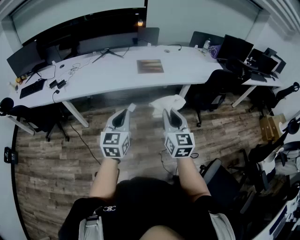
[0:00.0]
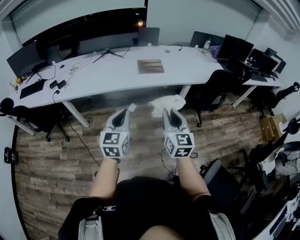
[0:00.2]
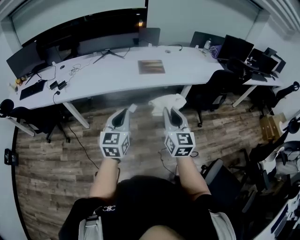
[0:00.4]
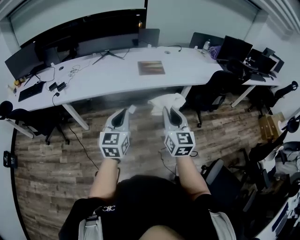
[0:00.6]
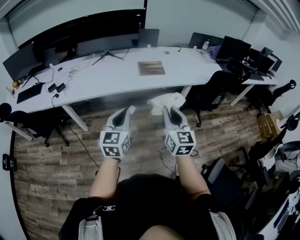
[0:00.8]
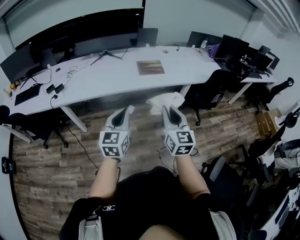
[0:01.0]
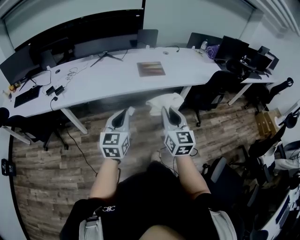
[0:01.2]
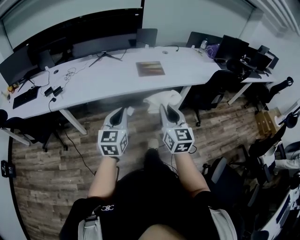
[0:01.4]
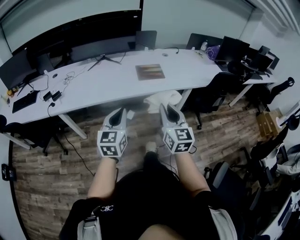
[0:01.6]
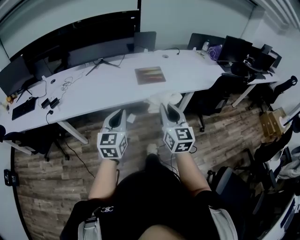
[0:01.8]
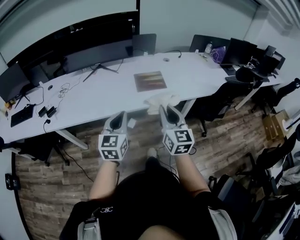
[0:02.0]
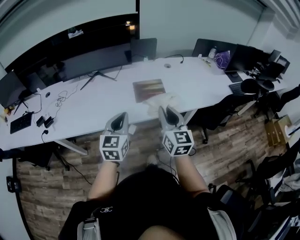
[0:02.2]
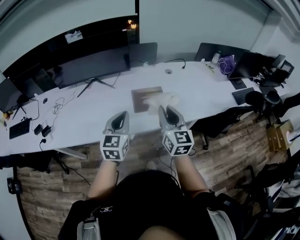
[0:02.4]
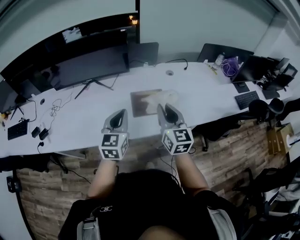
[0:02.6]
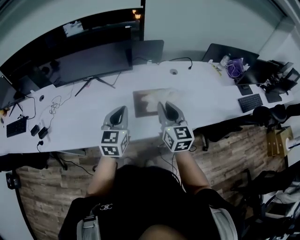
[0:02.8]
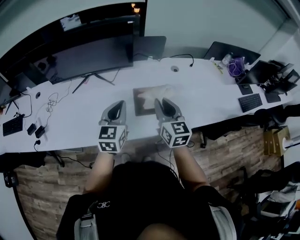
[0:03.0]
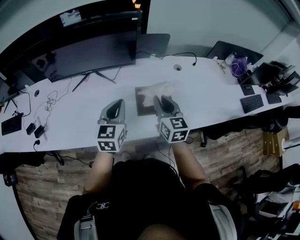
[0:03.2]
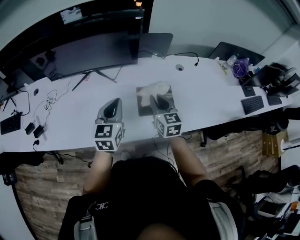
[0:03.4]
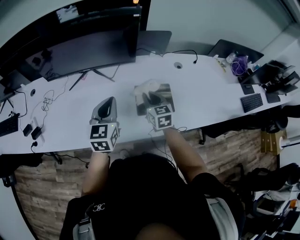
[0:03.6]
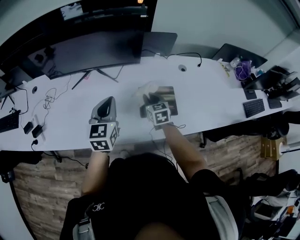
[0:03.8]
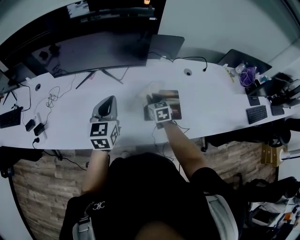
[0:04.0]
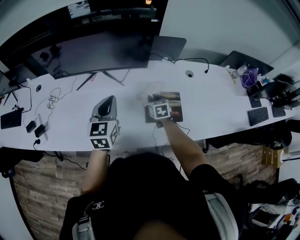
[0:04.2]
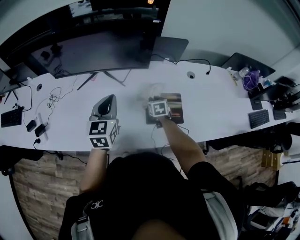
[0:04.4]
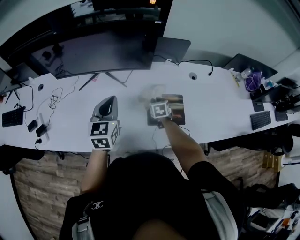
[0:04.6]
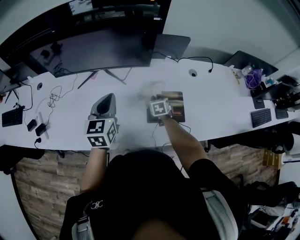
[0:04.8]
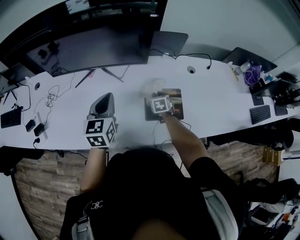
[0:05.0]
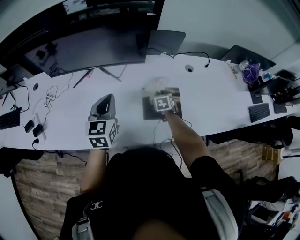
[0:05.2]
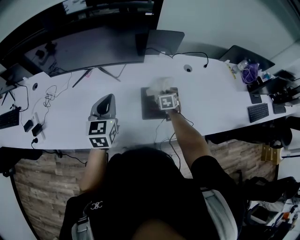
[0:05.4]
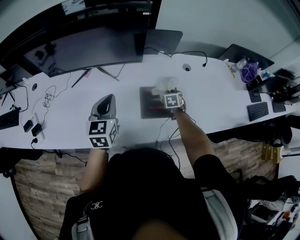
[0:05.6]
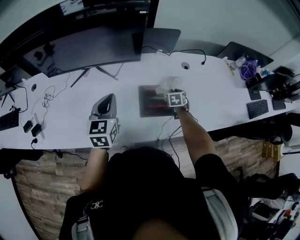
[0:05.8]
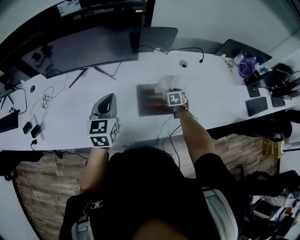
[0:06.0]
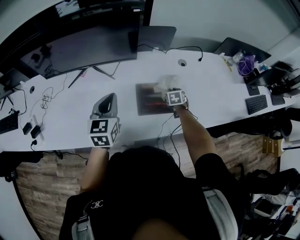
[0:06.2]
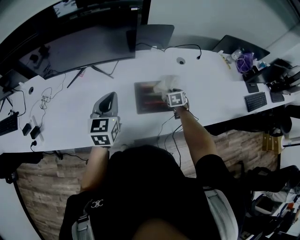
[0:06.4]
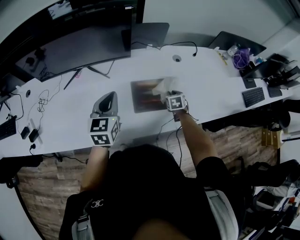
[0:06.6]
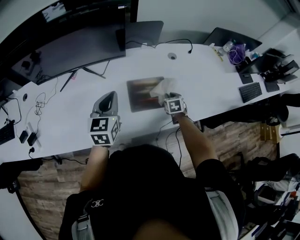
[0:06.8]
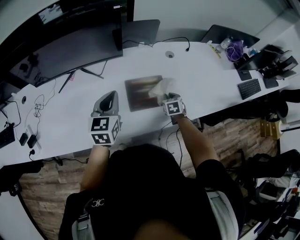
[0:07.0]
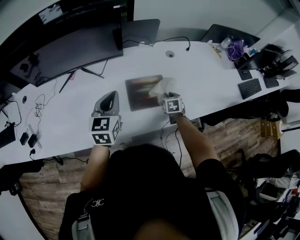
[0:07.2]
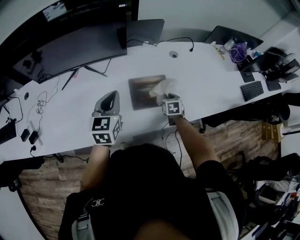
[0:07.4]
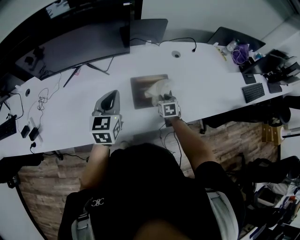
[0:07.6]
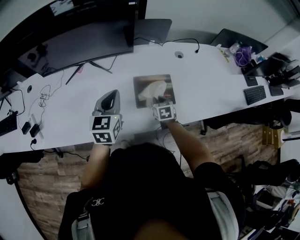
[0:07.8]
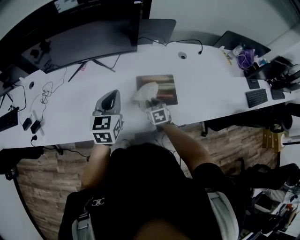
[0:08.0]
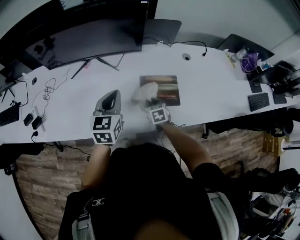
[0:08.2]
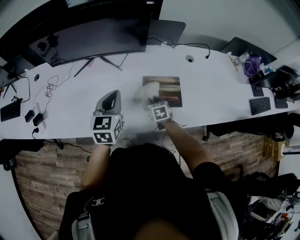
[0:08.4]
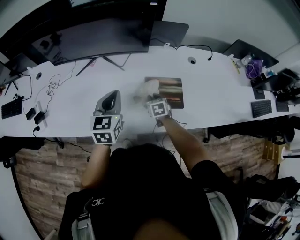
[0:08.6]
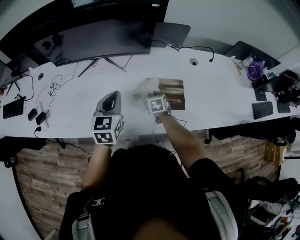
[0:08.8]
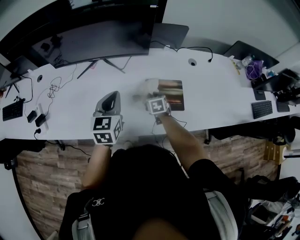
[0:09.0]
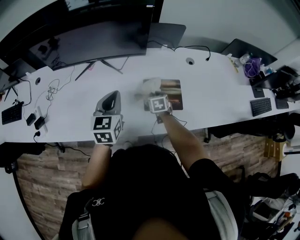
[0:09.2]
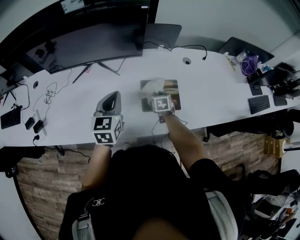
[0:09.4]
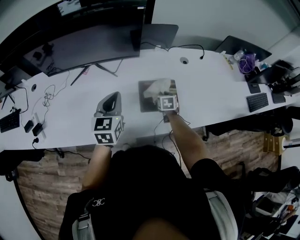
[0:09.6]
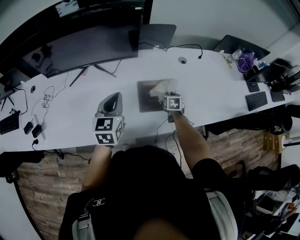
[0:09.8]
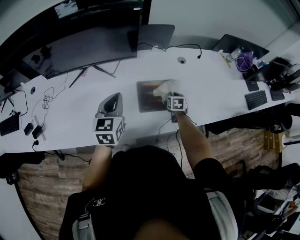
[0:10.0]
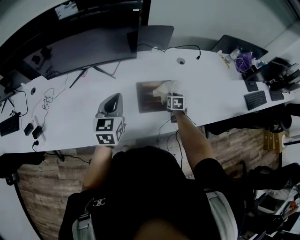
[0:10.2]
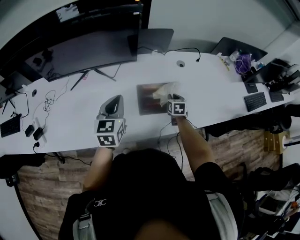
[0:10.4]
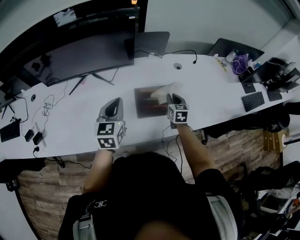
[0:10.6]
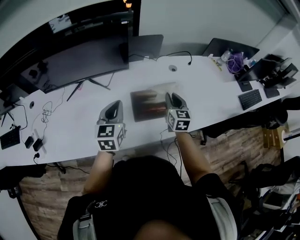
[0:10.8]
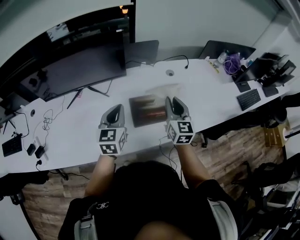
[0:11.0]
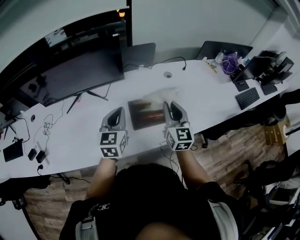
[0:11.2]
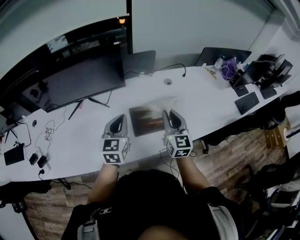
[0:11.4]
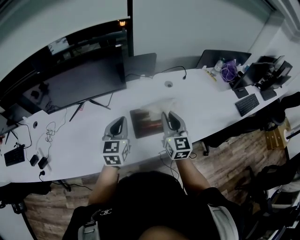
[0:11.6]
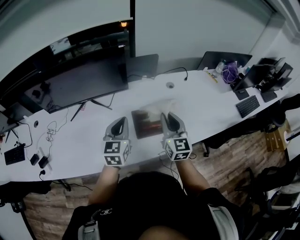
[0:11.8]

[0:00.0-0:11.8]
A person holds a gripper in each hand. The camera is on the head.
0.0 to 1.4 s: The two grippers go about 5 cm to the left.
1.4 to 3.0 s: The grippers both shift forward by some 35 cm.
3.0 to 4.4 s: The right gripper shifts some 30 cm downward and forward, and tilts its fingers about 40 degrees downward; the left gripper shifts approximately 10 cm to the left and forward.
4.4 to 6.0 s: The right gripper goes roughly 15 cm to the right.
6.0 to 7.4 s: The right gripper is displaced backward by about 10 cm.
7.4 to 8.8 s: The right gripper moves to the left, approximately 15 cm, while the left gripper travels to the left by approximately 5 cm.
8.8 to 10.4 s: The right gripper is displaced to the right by approximately 15 cm.
10.4 to 11.8 s: The right gripper shifts about 25 cm upward and backward, and tilts its fingers some 40 degrees upward.

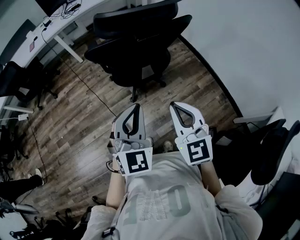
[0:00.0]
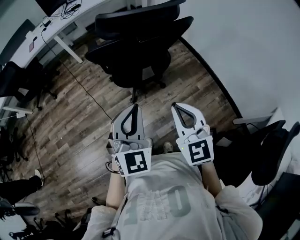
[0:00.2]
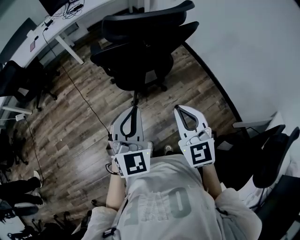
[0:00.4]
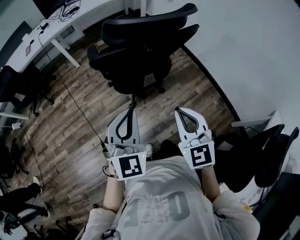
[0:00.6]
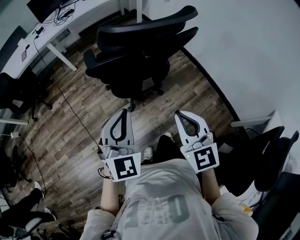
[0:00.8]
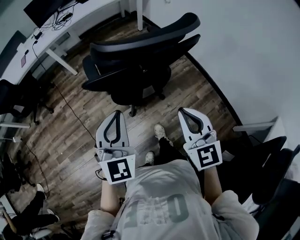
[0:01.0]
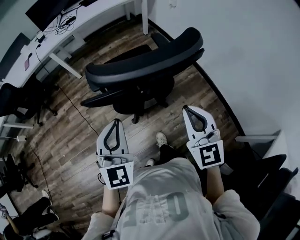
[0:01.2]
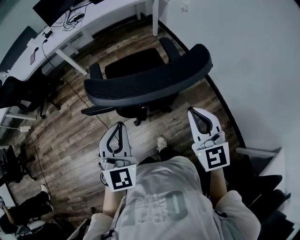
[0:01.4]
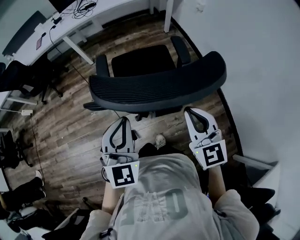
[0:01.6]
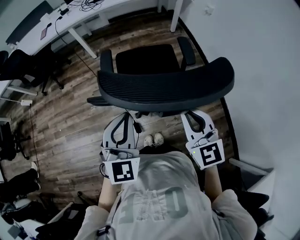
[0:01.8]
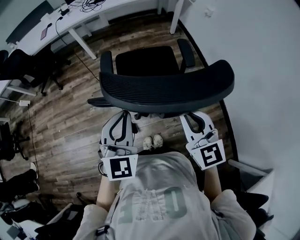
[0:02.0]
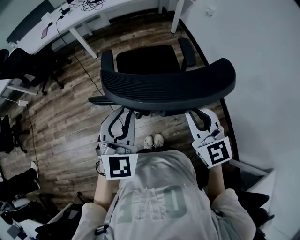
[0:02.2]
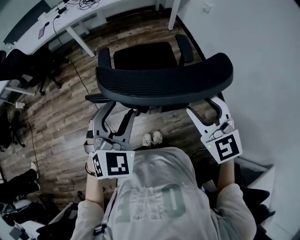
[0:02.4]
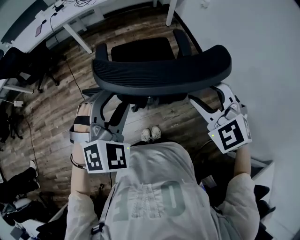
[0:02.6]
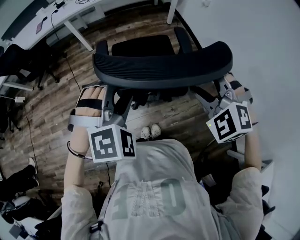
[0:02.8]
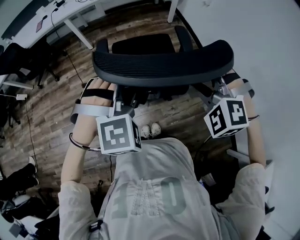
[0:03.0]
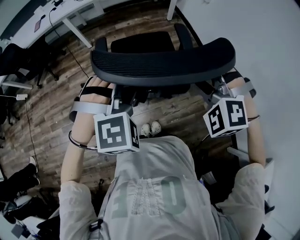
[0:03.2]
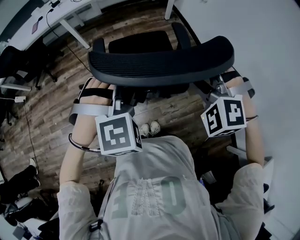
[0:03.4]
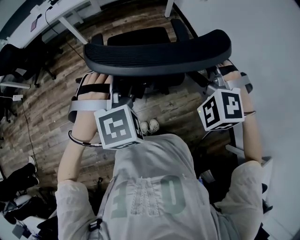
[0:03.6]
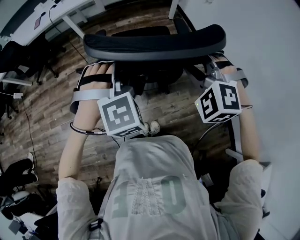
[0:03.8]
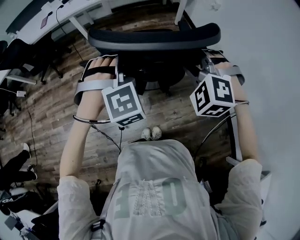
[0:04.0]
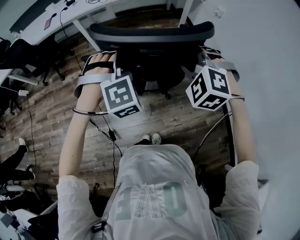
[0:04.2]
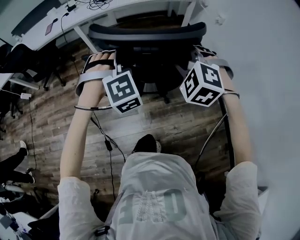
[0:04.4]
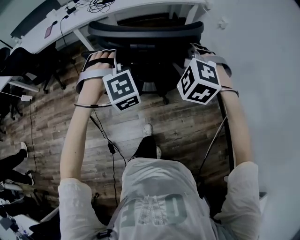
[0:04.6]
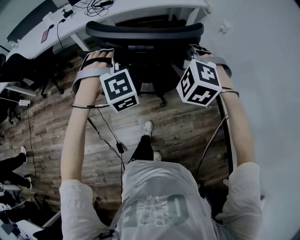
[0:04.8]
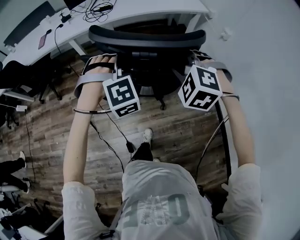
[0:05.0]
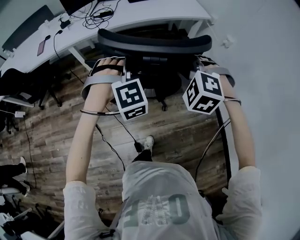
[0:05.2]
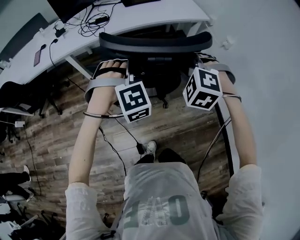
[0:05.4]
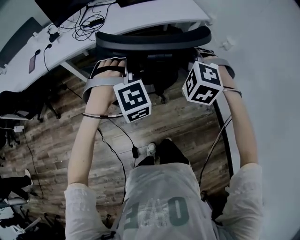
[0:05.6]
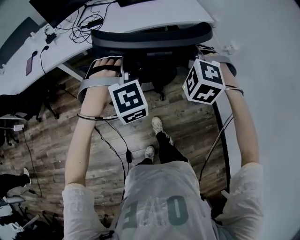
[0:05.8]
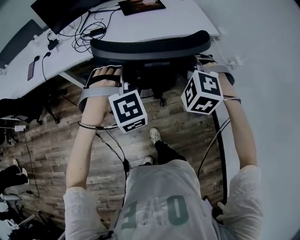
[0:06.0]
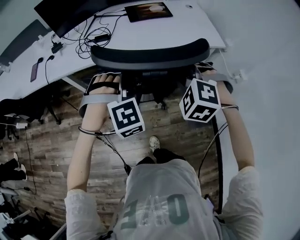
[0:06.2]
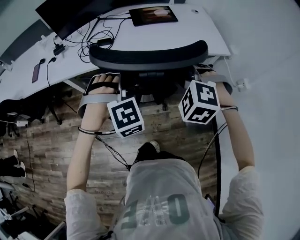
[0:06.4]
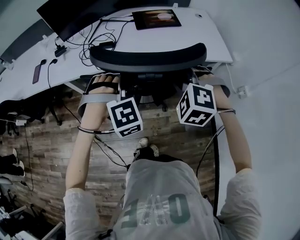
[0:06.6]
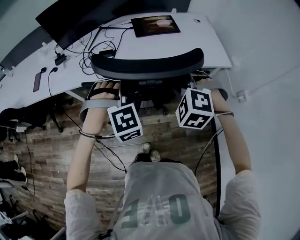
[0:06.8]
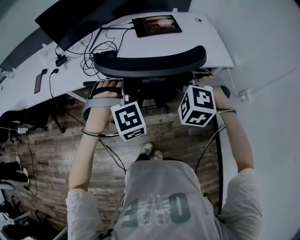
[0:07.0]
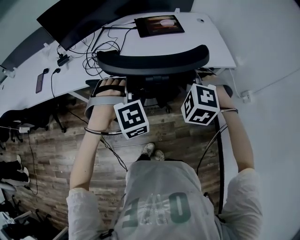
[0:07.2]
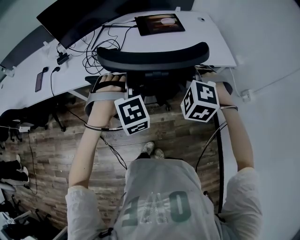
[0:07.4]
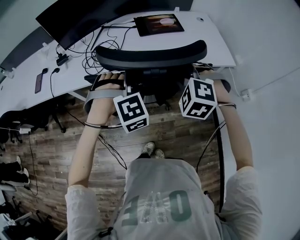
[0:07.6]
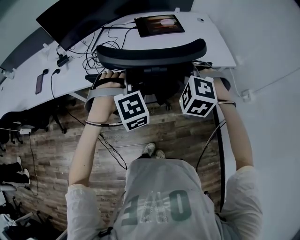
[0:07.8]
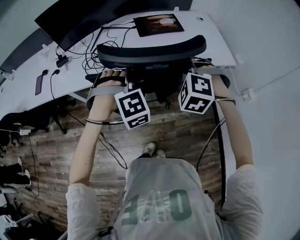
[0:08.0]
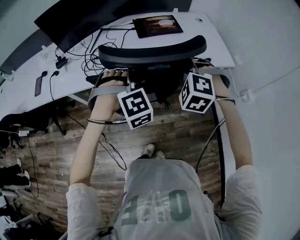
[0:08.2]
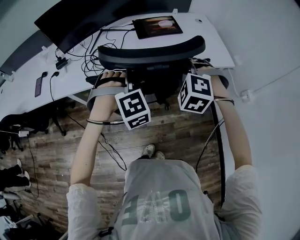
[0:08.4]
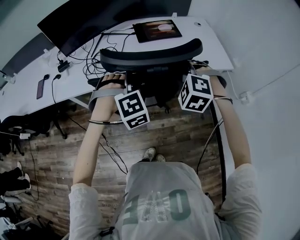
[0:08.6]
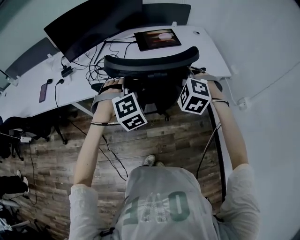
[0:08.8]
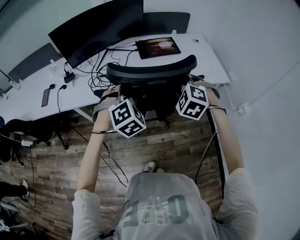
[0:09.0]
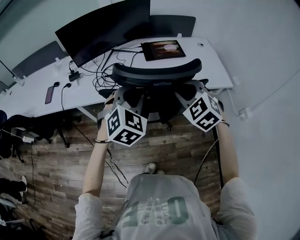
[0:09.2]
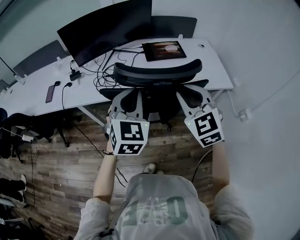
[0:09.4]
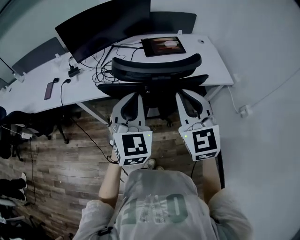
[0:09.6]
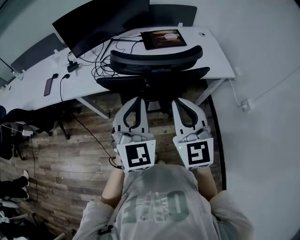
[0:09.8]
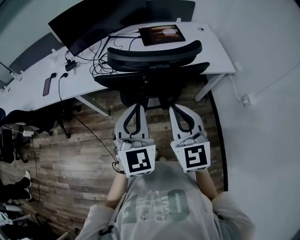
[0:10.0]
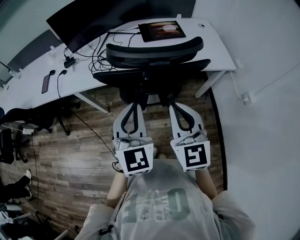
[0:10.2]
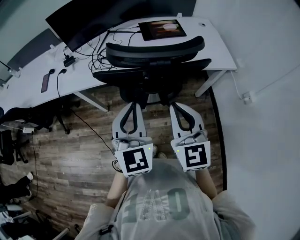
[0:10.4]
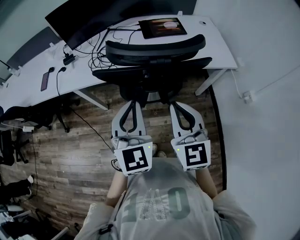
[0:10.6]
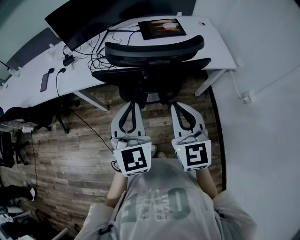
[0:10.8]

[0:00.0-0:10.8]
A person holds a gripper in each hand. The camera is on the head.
0.0 to 1.6 s: The two grippers go about 25 cm forward.
1.6 to 3.0 s: Both grippers move forward, approximately 5 cm. The left gripper twists approximately 50 degrees clockwise, seen from behind, and opens its fingers. Meanwhile the right gripper rolls counterclockwise, seen from behind, by some 60 degrees, and opens up.
3.0 to 4.6 s: The grippers both shift forward by about 25 cm. The left gripper changes its angle by roughly 20 degrees. The right gripper closes.
4.6 to 6.2 s: The pair of grippers is taken forward, roughly 40 cm.
6.2 to 7.8 s: The grippers both shift forward by roughly 15 cm.
7.8 to 9.2 s: The left gripper moves upward, about 10 cm, and changes its angle by some 50 degrees. Meanwhile the right gripper travels upward by approximately 5 cm, and turns by approximately 30 degrees.
9.2 to 10.8 s: The two grippers go roughly 10 cm backward. The right gripper swivels roughly 40 degrees, and closes up, while the left gripper turns by about 40 degrees, and closes up.

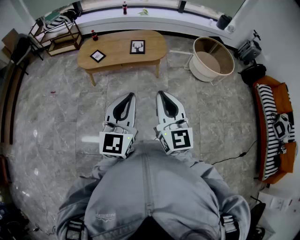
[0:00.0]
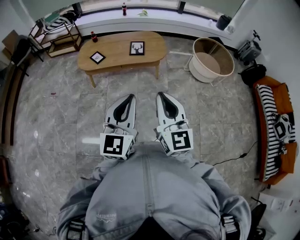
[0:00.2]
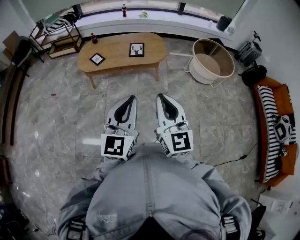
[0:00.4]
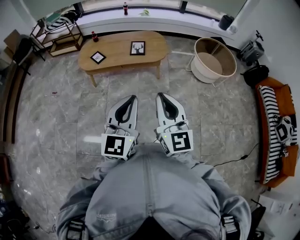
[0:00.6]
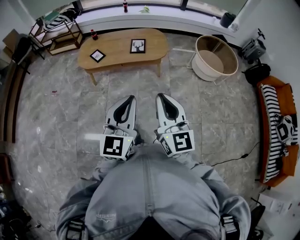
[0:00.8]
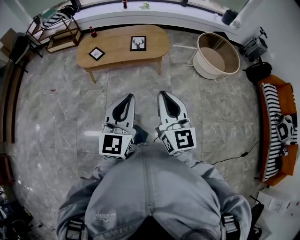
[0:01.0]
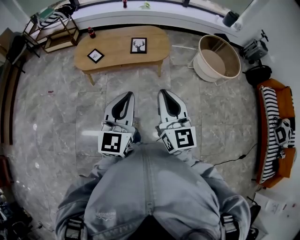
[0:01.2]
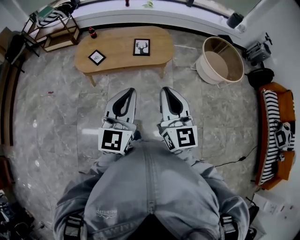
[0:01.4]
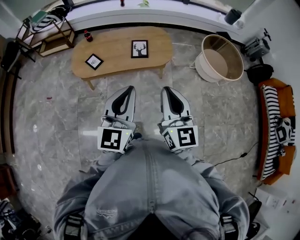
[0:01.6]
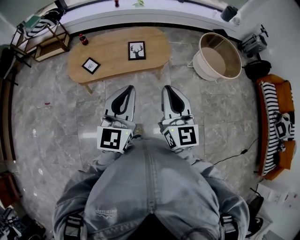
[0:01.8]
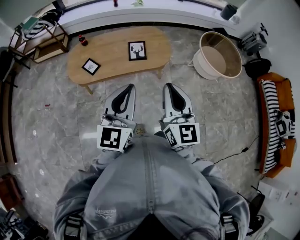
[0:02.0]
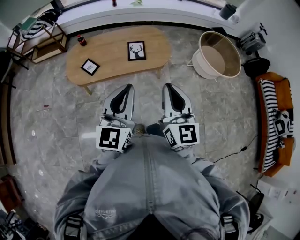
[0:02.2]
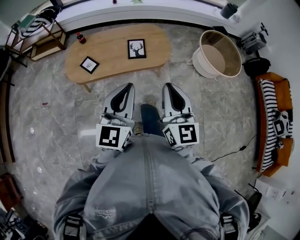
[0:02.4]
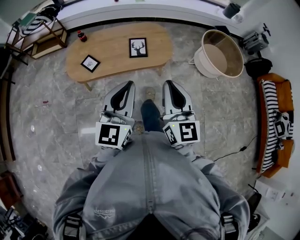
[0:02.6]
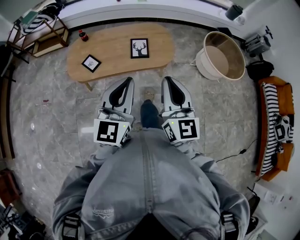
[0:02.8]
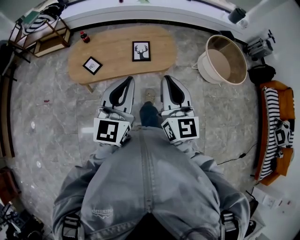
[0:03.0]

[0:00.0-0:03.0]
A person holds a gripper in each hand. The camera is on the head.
0.0 to 1.6 s: The two grippers go approximately 30 cm forward.
1.6 to 3.0 s: Both grippers move forward, roughly 15 cm.
